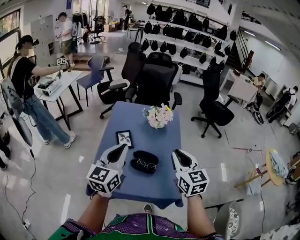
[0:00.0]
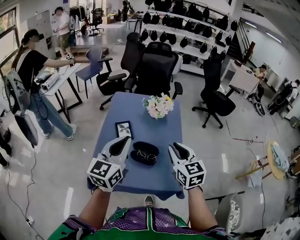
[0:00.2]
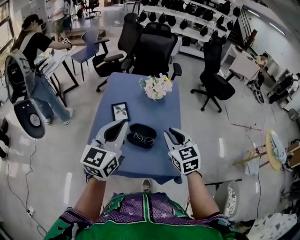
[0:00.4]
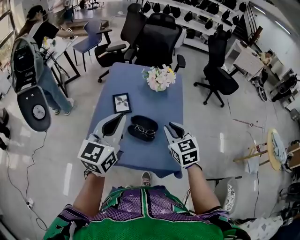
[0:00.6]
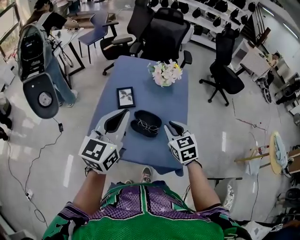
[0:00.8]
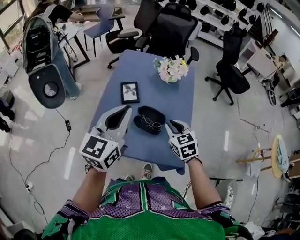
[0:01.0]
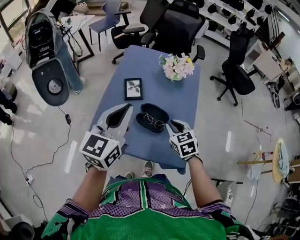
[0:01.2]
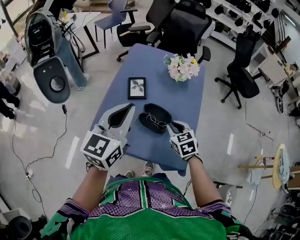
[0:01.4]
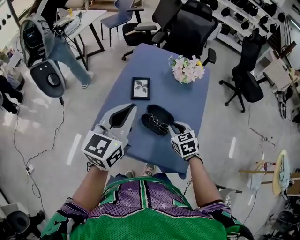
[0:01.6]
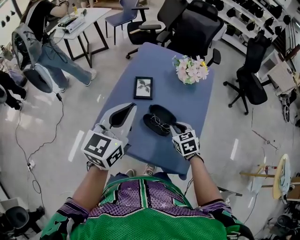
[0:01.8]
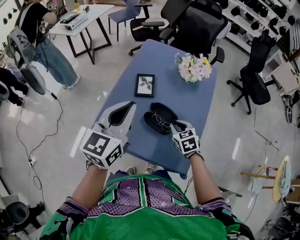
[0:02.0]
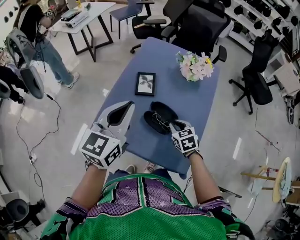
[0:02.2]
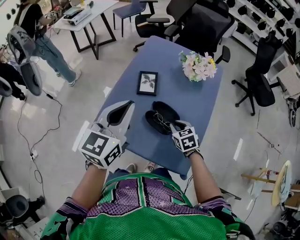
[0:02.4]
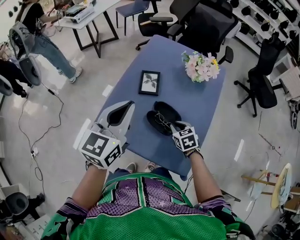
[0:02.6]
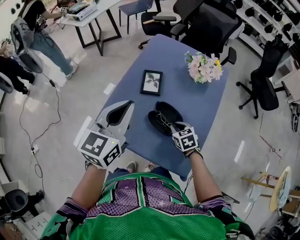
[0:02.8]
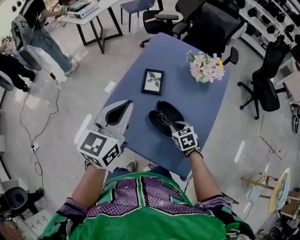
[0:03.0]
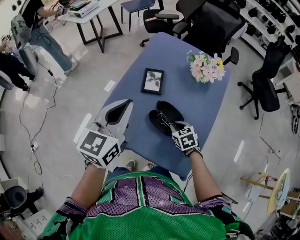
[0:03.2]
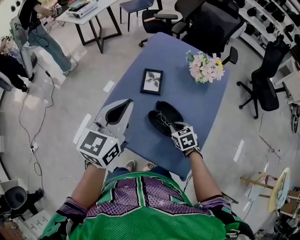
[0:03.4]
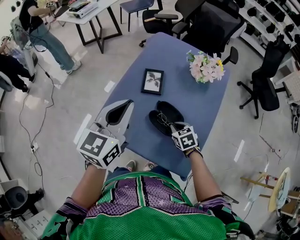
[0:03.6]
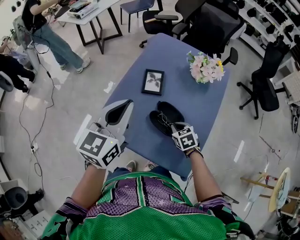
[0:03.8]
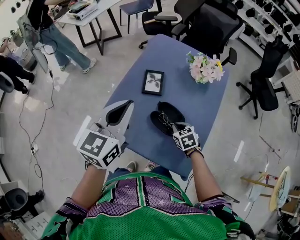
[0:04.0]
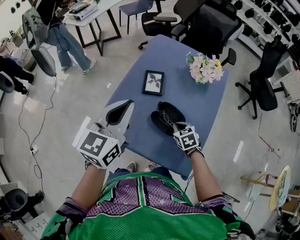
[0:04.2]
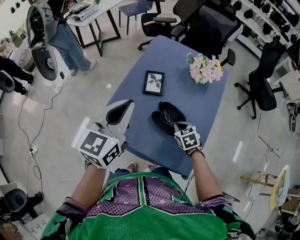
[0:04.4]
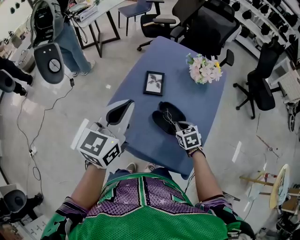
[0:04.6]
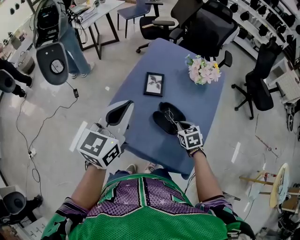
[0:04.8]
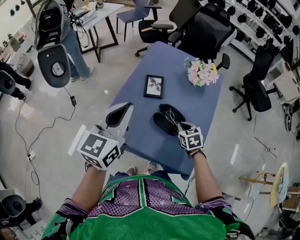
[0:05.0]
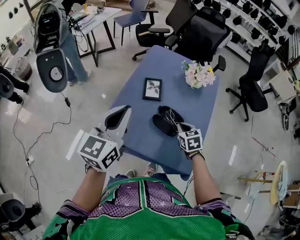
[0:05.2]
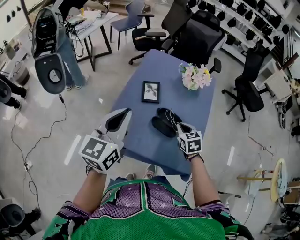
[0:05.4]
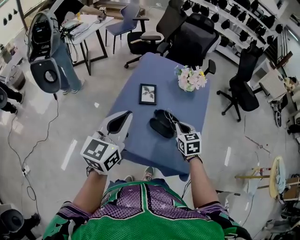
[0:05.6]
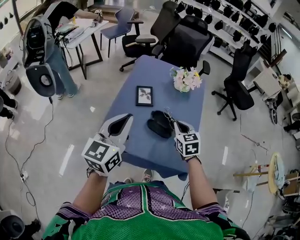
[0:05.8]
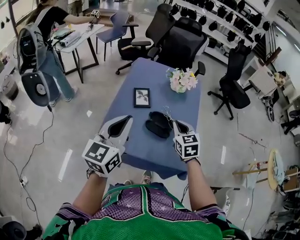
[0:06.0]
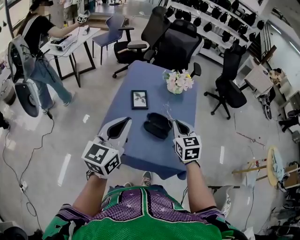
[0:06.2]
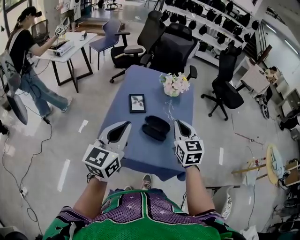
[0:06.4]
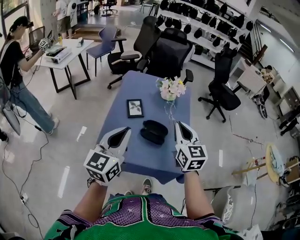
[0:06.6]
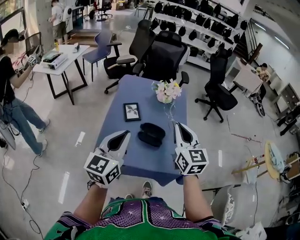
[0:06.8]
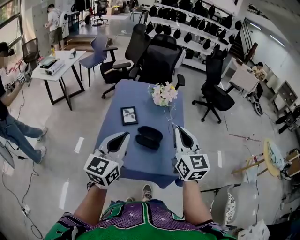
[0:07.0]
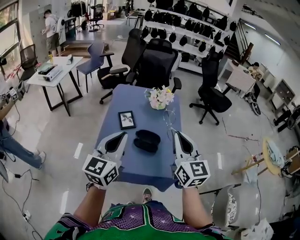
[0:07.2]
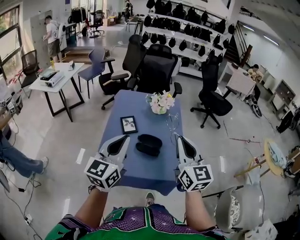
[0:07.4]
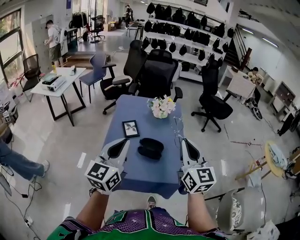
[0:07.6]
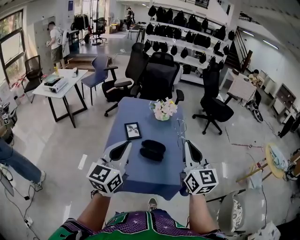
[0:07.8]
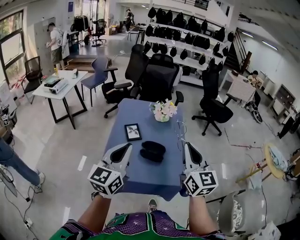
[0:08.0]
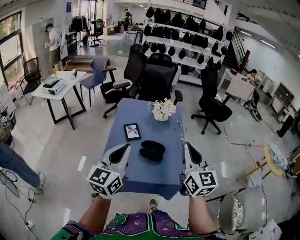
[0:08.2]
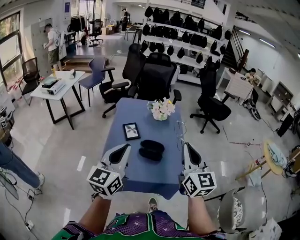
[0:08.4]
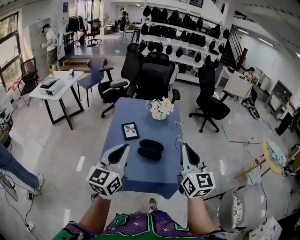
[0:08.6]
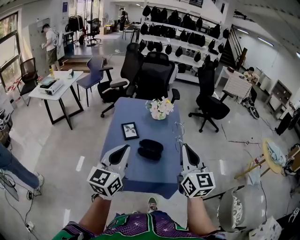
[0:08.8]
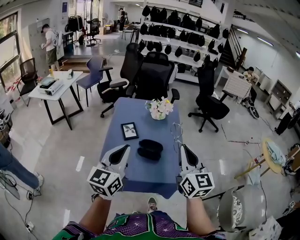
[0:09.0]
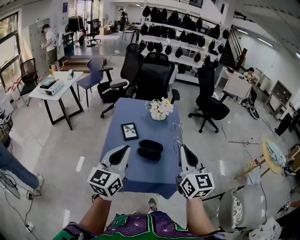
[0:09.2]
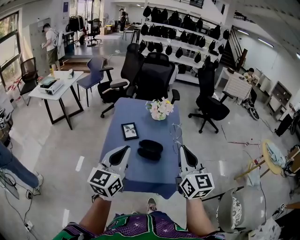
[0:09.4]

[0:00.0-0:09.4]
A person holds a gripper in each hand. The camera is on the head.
0:00.0 to 0:01.6: The right gripper shifts approximately 25 cm downward, and tilts its fingers roughly 30 degrees downward.
0:01.6 to 0:03.2: The right gripper travels downward by some 10 cm. Meanwhile the left gripper moves about 5 cm.
0:03.2 to 0:04.8: The grippers stay close to where they were, moving slightly.
0:04.8 to 0:06.2: The right gripper heads upward, covering about 20 cm, and turns by about 30 degrees. Meanwhile the left gripper moves backward, about 5 cm.
0:06.2 to 0:07.8: The left gripper goes about 5 cm upward. The right gripper heads upward and backward, covering approximately 20 cm, and rotates roughly 30 degrees.
0:07.8 to 0:09.4: The grippers stay close to where they were, moving slightly.

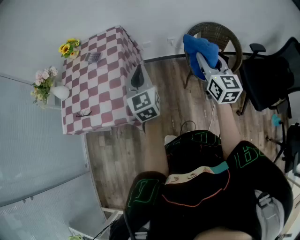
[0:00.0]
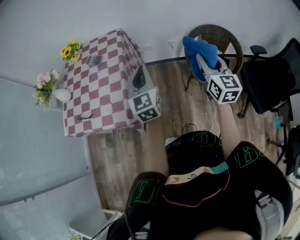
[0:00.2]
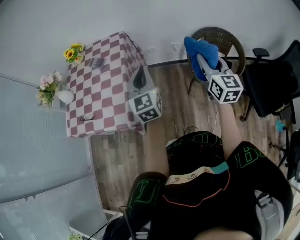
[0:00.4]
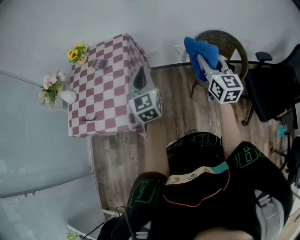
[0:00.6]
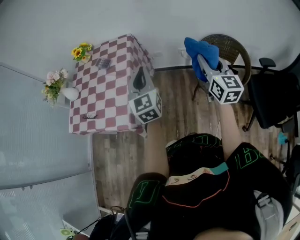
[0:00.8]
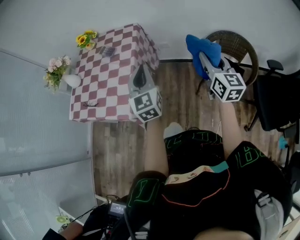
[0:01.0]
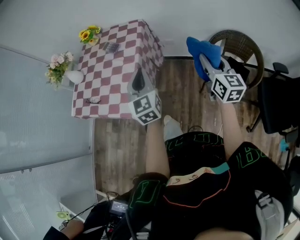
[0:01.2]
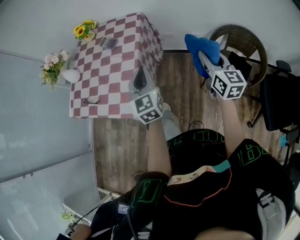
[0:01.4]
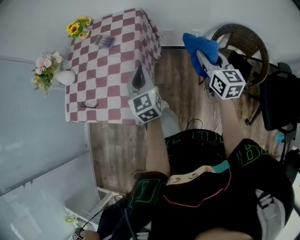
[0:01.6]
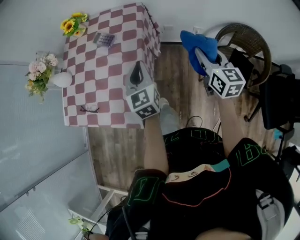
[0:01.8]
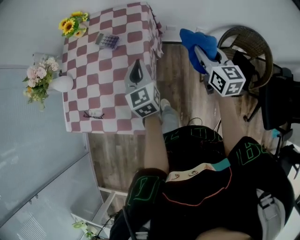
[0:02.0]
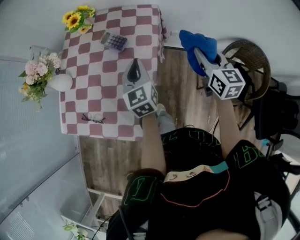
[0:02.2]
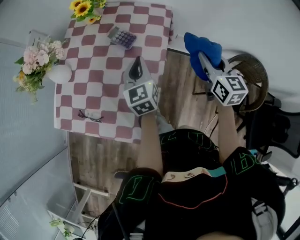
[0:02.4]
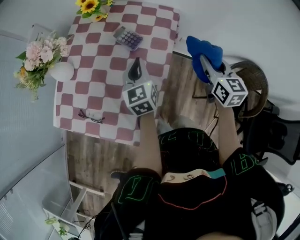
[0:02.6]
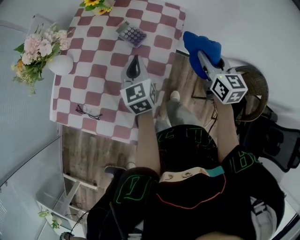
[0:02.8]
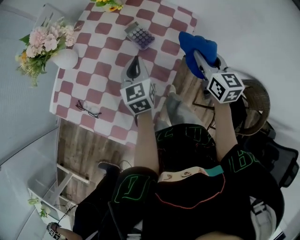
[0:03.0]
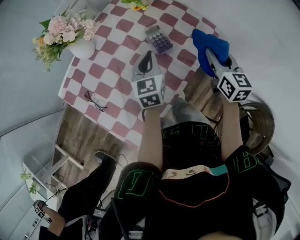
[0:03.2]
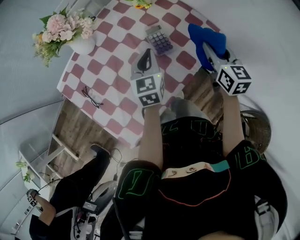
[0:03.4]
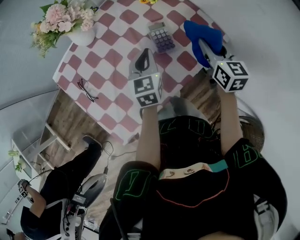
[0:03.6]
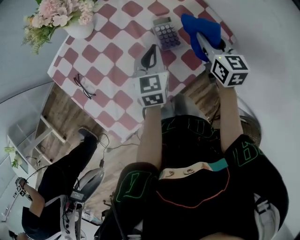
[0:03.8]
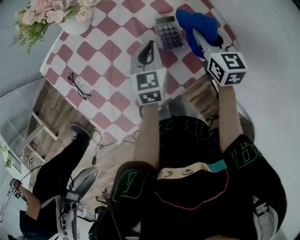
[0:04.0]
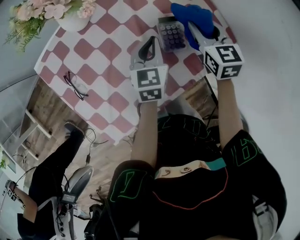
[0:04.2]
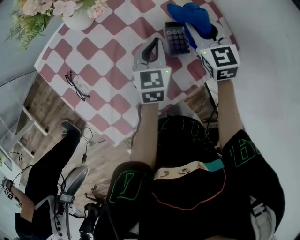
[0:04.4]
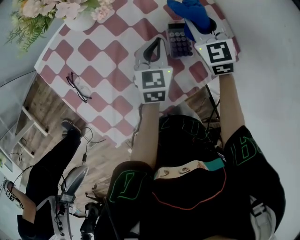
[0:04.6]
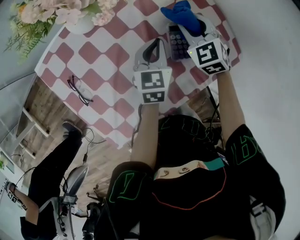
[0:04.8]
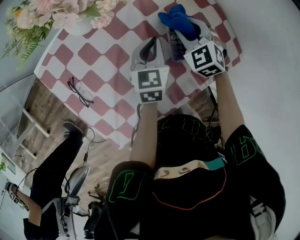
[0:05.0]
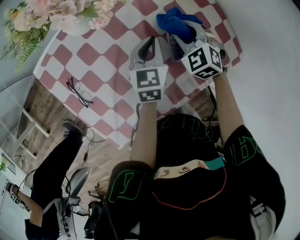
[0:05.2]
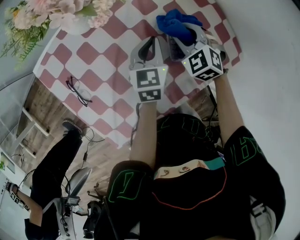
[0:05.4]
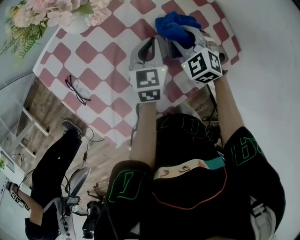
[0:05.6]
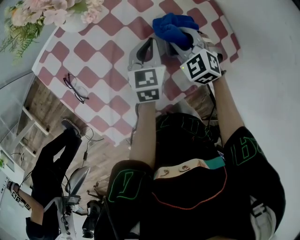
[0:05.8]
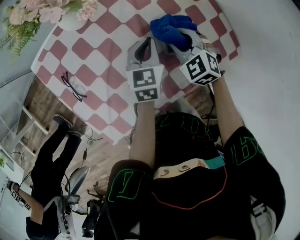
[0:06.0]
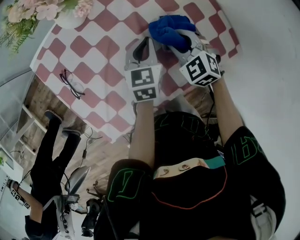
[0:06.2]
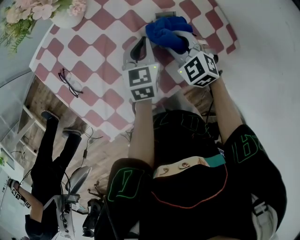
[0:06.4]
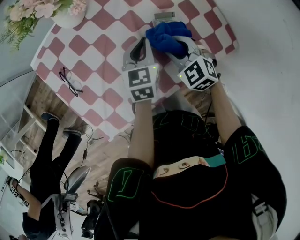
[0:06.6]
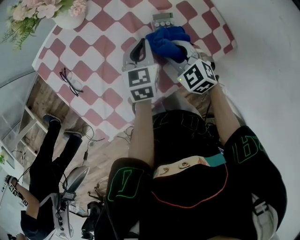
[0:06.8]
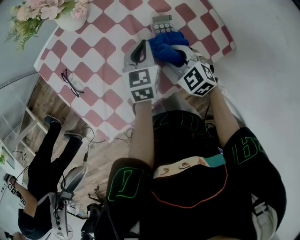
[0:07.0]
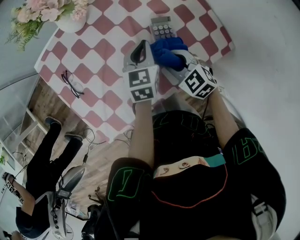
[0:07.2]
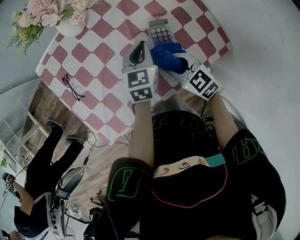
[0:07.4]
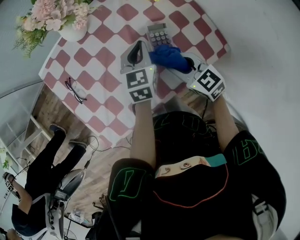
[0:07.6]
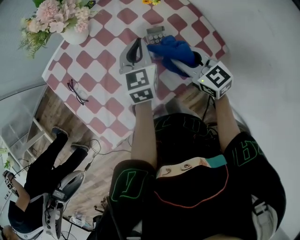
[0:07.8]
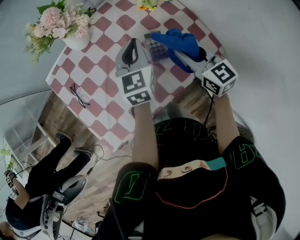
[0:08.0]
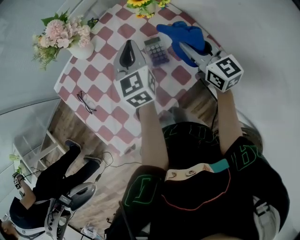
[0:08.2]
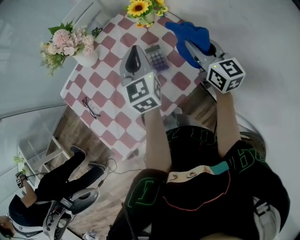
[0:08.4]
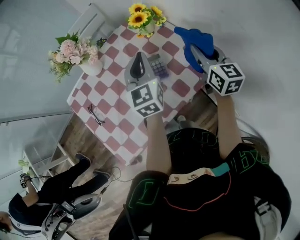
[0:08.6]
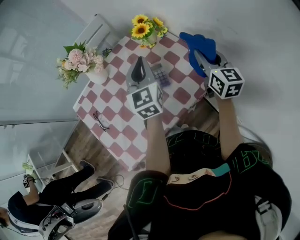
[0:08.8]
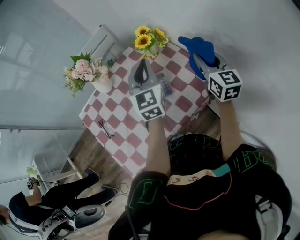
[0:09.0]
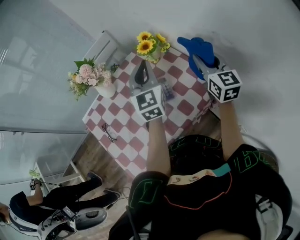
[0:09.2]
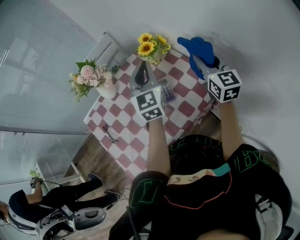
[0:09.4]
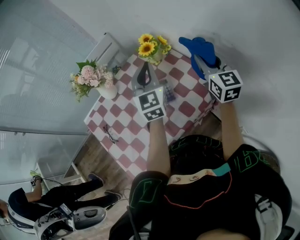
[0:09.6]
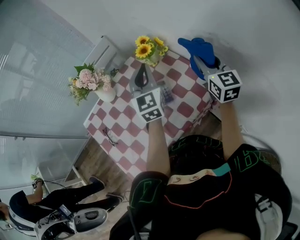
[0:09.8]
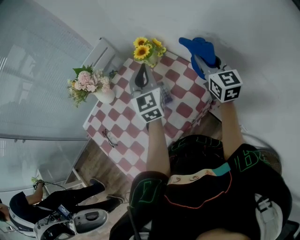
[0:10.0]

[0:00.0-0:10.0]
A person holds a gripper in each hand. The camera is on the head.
0:00.0 to 0:01.4: The right gripper goes approximately 10 cm forward and downward; the left gripper moves roughly 5 cm.
0:01.4 to 0:02.8: The two grippers go approximately 35 cm forward and to the left. The right gripper swivels roughly 20 degrees. The left gripper rotates about 20 degrees.
0:02.8 to 0:04.2: The left gripper changes place by some 15 cm, and swivels about 20 degrees. The right gripper shifts by some 30 cm, and rotates roughly 40 degrees.
0:04.2 to 0:05.8: The right gripper moves downward and to the left, about 10 cm, and turns by approximately 40 degrees.
0:05.8 to 0:07.2: The right gripper goes some 10 cm backward.
0:07.2 to 0:08.6: The right gripper travels to the right and upward by about 25 cm, and angles its fingers upward, by roughly 30 degrees. Meanwhile the left gripper travels upward by approximately 15 cm, and swivels approximately 20 degrees.
0:08.6 to 0:10.0: The grippers both shift upward by approximately 5 cm.

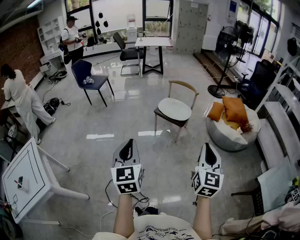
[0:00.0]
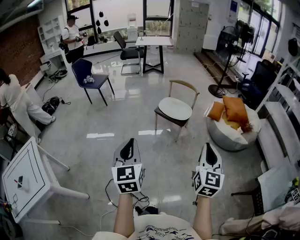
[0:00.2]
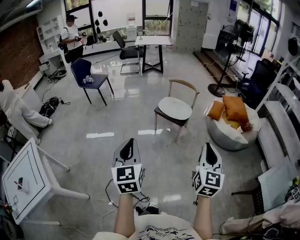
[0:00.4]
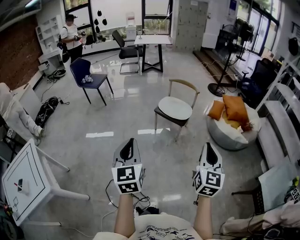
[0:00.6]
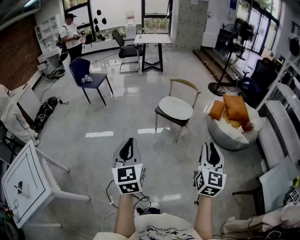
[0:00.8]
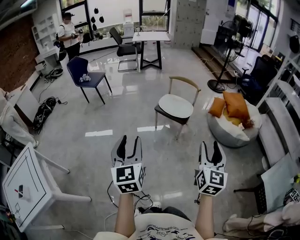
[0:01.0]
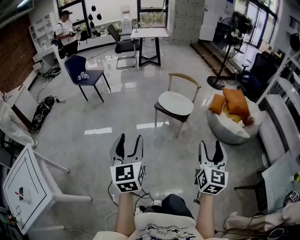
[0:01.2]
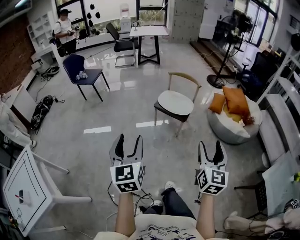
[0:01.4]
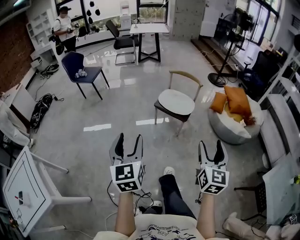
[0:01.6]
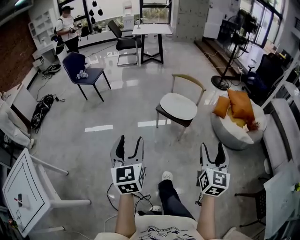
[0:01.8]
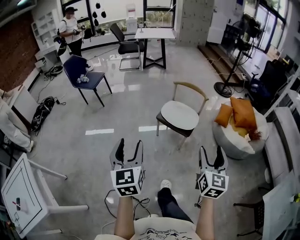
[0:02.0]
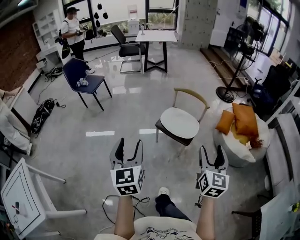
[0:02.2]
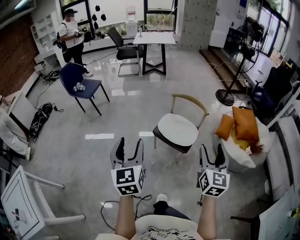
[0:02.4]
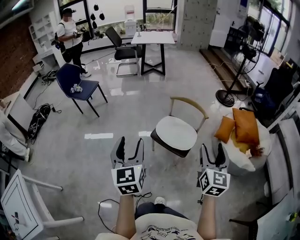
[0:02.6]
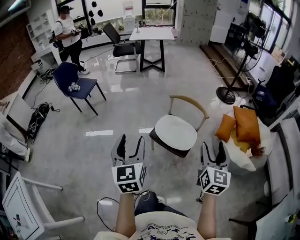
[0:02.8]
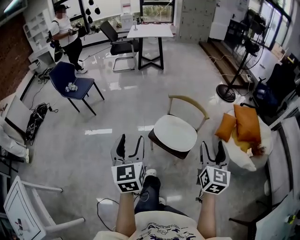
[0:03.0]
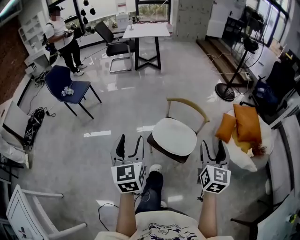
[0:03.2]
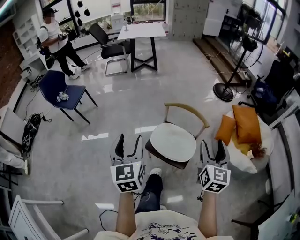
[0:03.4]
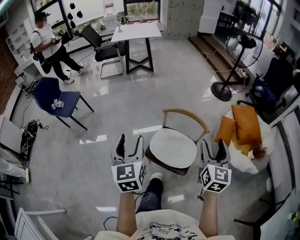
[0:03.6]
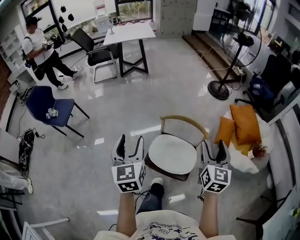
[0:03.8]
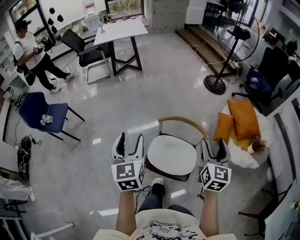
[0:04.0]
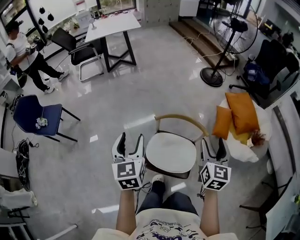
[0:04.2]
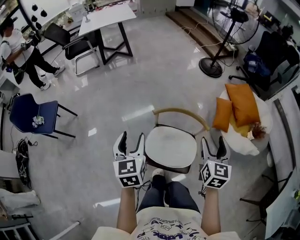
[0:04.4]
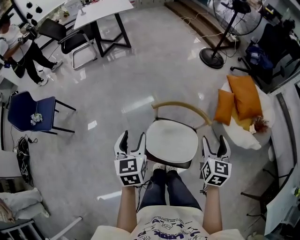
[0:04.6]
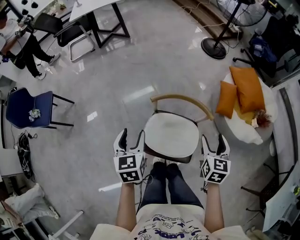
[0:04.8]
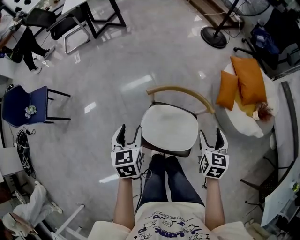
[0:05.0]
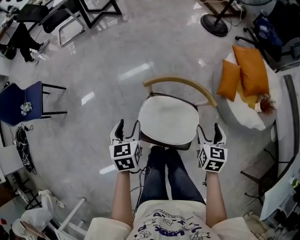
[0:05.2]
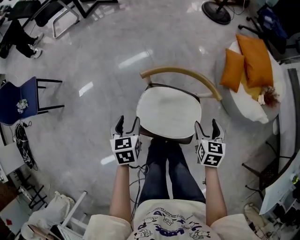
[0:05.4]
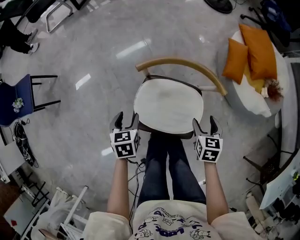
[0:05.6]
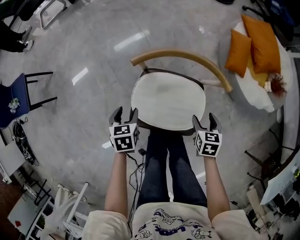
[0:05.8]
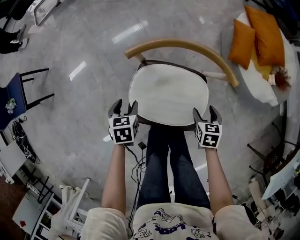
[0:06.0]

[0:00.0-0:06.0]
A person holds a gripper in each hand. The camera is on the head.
0:00.0 to 0:01.6: The grippers both shift forward by about 15 cm. The right gripper opens, while the left gripper opens its fingers.
0:01.6 to 0:03.0: The two grippers travel together, forward, some 50 cm.
0:03.0 to 0:04.4: Both grippers move forward, roughly 40 cm. The left gripper swivels about 20 degrees; the right gripper changes its angle by roughly 20 degrees.
0:04.4 to 0:06.0: The two grippers go approximately 50 cm downward. The right gripper tips its fingers downward by roughly 40 degrees; the left gripper tips its fingers downward by some 40 degrees.